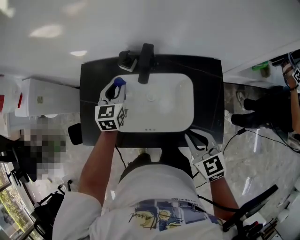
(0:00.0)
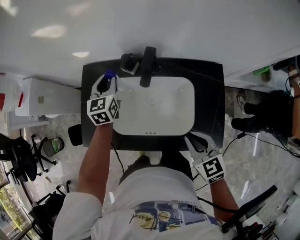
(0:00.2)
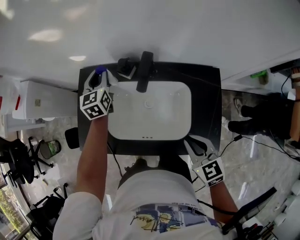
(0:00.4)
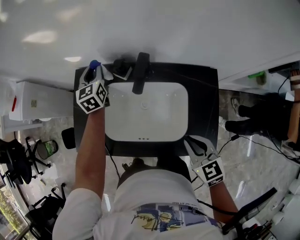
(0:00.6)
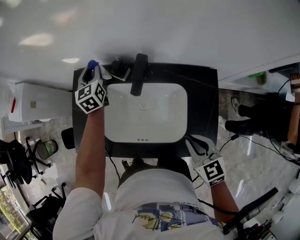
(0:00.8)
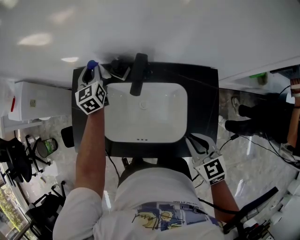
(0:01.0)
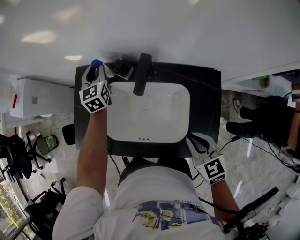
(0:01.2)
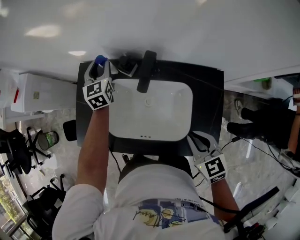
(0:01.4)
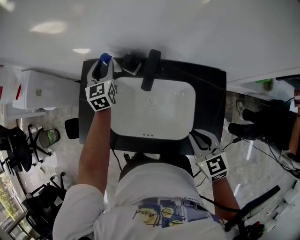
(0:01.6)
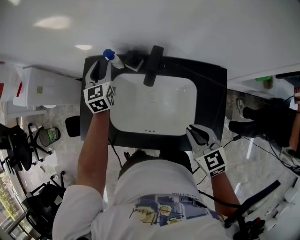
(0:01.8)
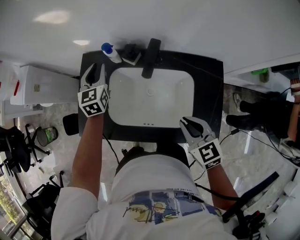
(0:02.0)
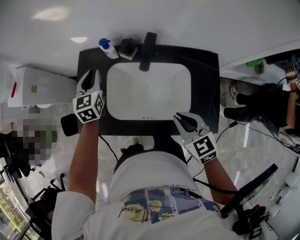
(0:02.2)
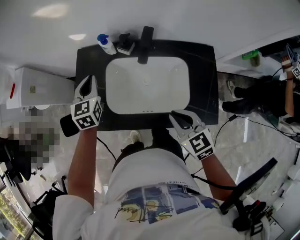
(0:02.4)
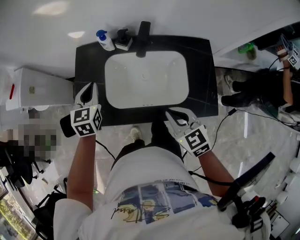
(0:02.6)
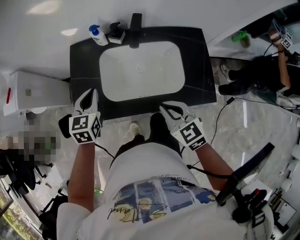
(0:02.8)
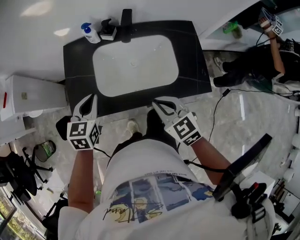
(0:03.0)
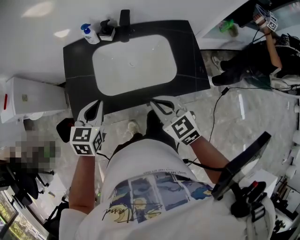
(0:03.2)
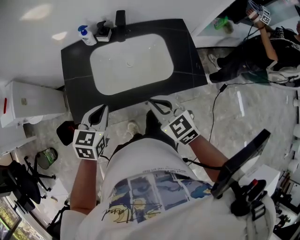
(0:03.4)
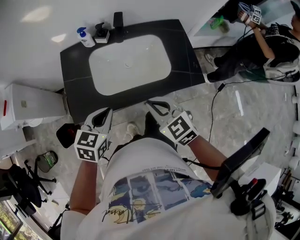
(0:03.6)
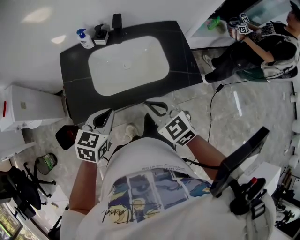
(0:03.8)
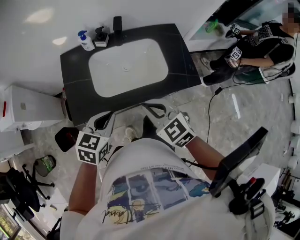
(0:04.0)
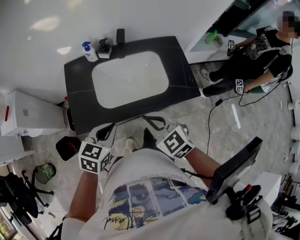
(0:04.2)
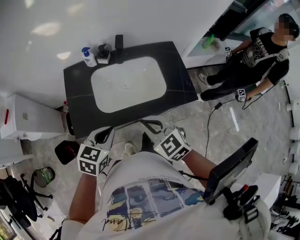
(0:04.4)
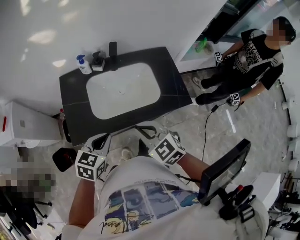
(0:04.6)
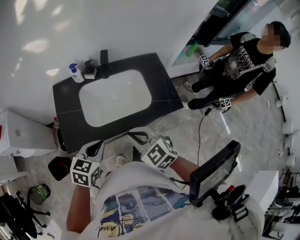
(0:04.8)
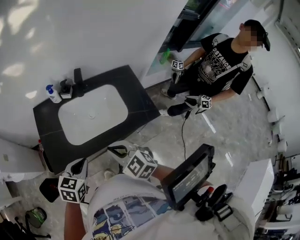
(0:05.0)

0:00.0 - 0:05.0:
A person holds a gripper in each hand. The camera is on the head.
0:00.0 - 0:01.6: The left gripper heads forward, covering roughly 10 cm.
0:01.6 - 0:03.4: The left gripper shifts by some 40 cm, turns by approximately 40 degrees, and closes its fingers. The right gripper moves approximately 20 cm.
0:03.4 - 0:05.0: The right gripper ends up roughly 5 cm from where it was; the left gripper is displaced backward by some 5 cm.

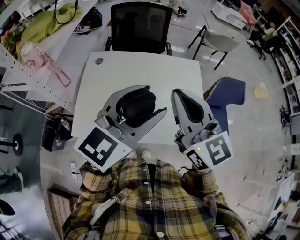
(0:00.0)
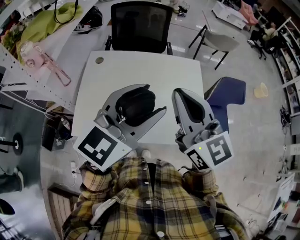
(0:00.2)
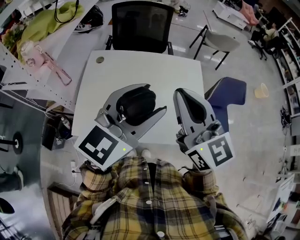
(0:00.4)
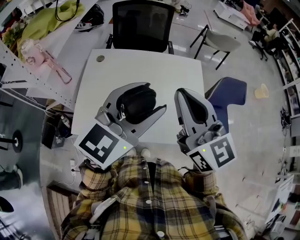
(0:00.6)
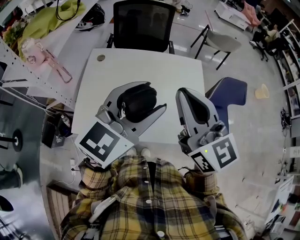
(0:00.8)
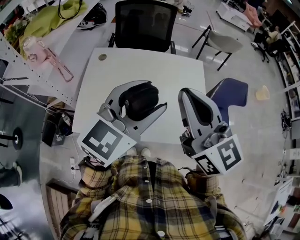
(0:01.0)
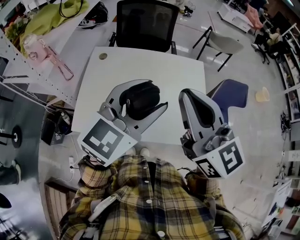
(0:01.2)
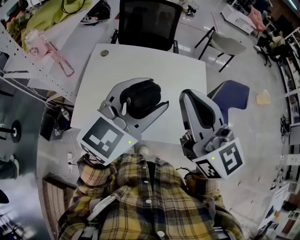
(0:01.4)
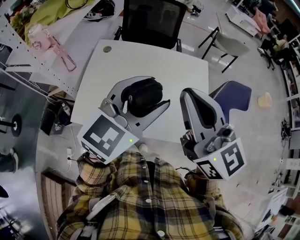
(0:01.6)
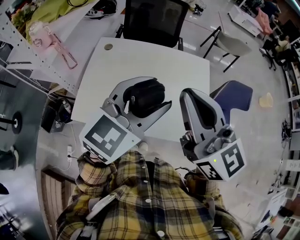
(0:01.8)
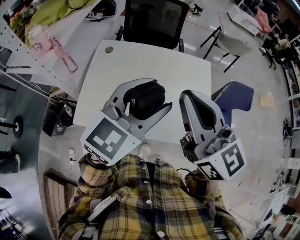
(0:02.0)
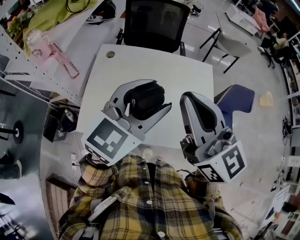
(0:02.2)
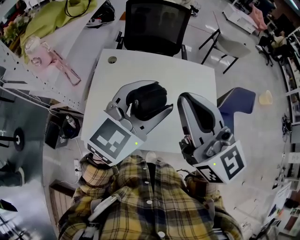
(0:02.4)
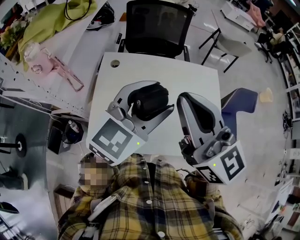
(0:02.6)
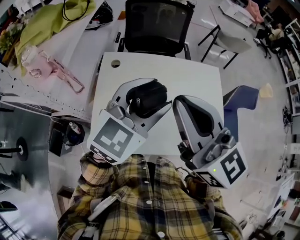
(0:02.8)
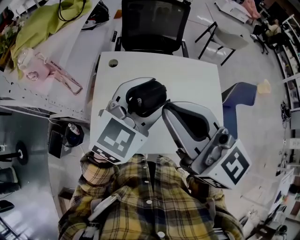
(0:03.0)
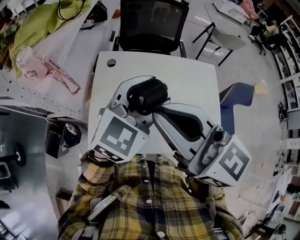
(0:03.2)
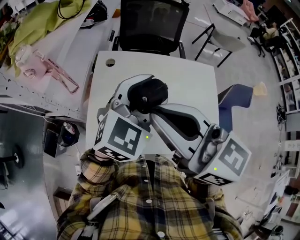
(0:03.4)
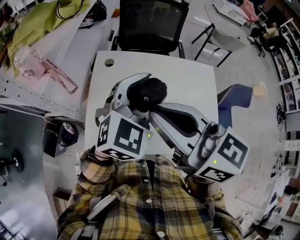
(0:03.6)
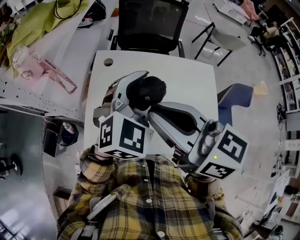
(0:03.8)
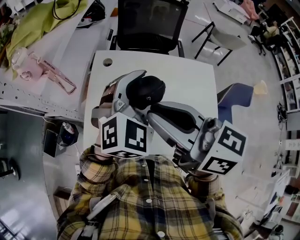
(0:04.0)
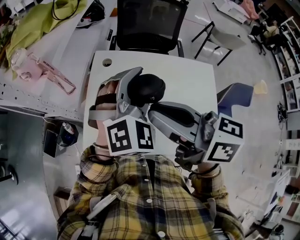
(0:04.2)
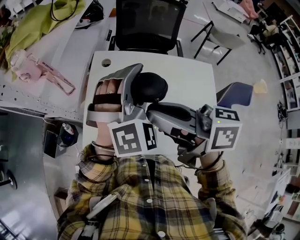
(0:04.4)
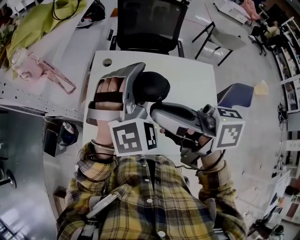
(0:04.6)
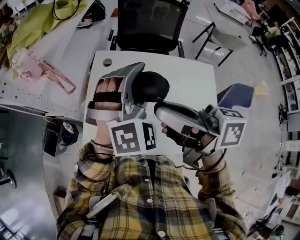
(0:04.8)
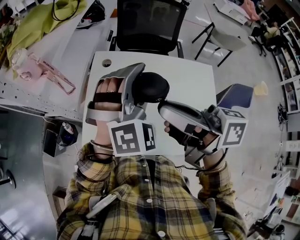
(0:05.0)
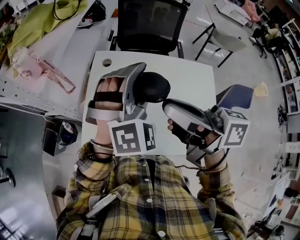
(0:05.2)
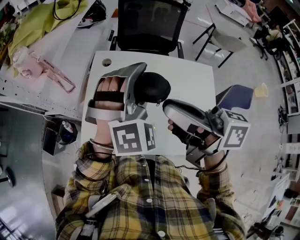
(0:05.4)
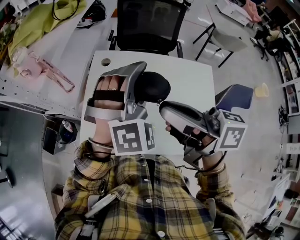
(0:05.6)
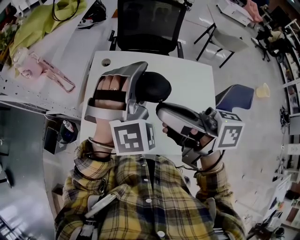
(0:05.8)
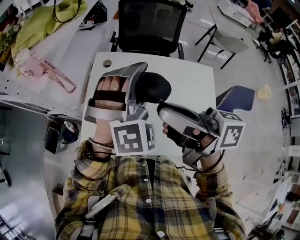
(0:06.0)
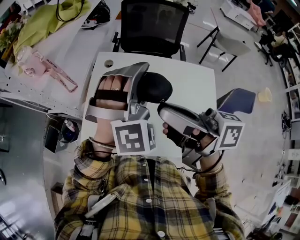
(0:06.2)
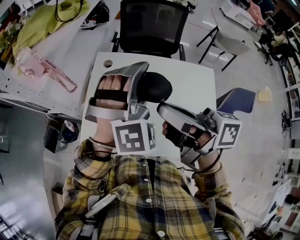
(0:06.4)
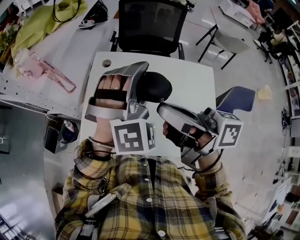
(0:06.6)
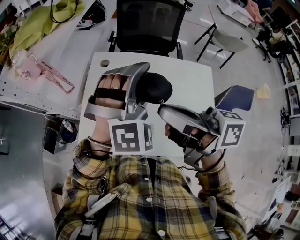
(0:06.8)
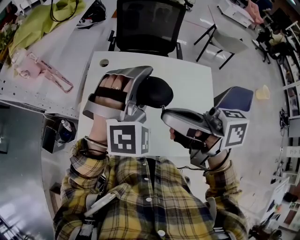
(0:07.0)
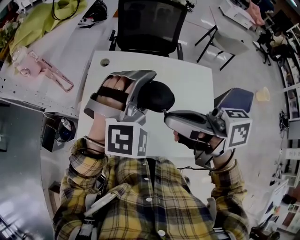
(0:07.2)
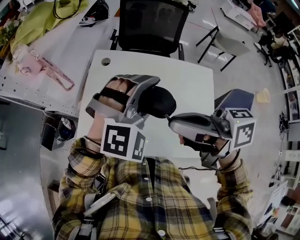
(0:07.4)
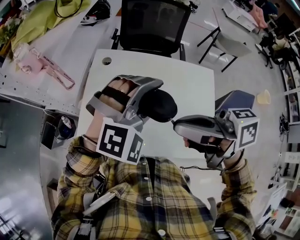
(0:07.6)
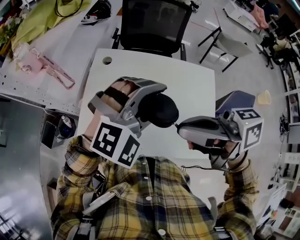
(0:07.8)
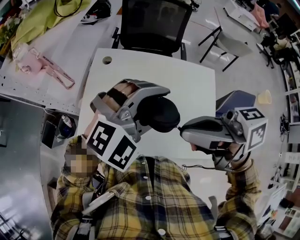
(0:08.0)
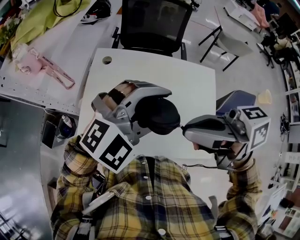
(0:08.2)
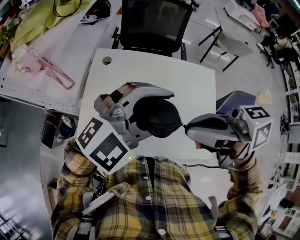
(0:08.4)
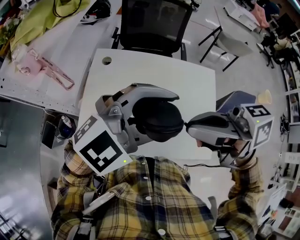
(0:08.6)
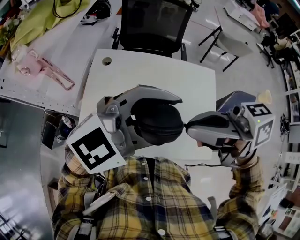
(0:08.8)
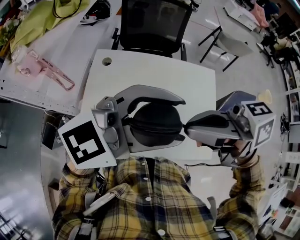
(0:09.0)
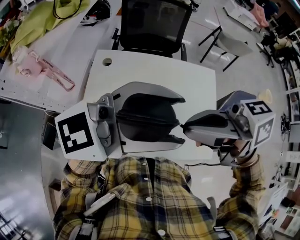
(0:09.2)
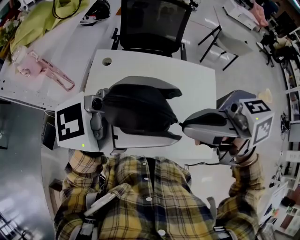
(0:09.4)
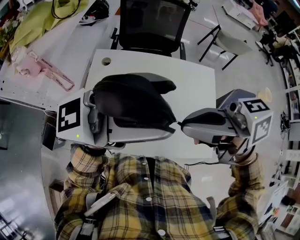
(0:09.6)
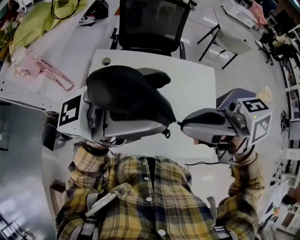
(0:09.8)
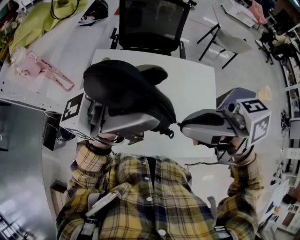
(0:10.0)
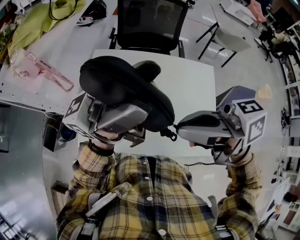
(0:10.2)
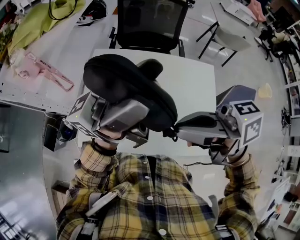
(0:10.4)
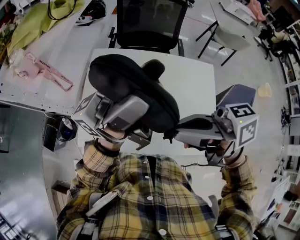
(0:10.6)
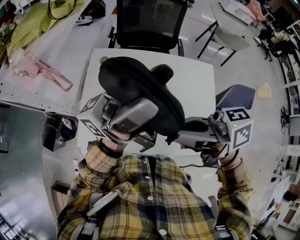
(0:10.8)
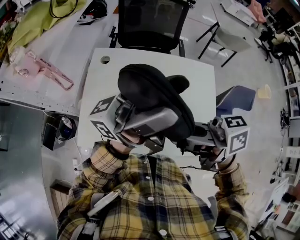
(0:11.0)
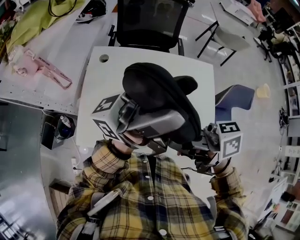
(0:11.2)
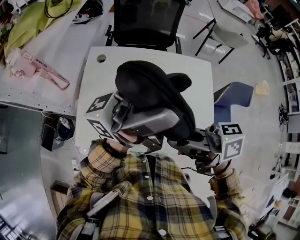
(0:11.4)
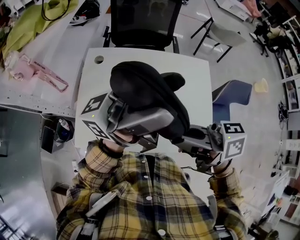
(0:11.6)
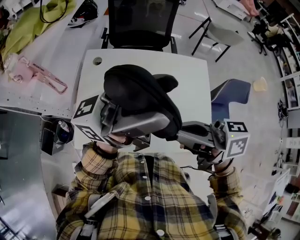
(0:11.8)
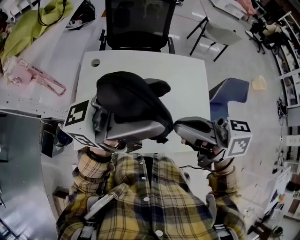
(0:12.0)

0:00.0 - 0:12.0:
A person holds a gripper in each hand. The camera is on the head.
0:00.0 - 0:01.6: The grippers stay close to where they were, moving slightly.
0:01.6 - 0:03.0: The left gripper shifts approximately 15 cm to the left and forward; the right gripper is displaced to the left by some 20 cm.
0:03.0 - 0:04.4: The left gripper ends up about 5 cm from where it was, and rotates approximately 50 degrees, while the right gripper heads downward, covering roughly 5 cm, and twists some 40 degrees clockwise, seen from behind.
0:04.4 - 0:06.0: The right gripper moves roughly 5 cm.
0:06.0 - 0:07.6: The left gripper moves backward, approximately 5 cm, and changes its angle by about 20 degrees.
0:07.6 - 0:09.0: The left gripper travels upward by some 10 cm, and changes its angle by about 60 degrees.
0:09.0 - 0:10.4: The left gripper shifts by roughly 10 cm, and points its fingers about 60 degrees further upward.
0:10.4 - 0:12.0: The left gripper moves approximately 5 cm; the right gripper shifts by about 5 cm, and swivels approximately 20 degrees.

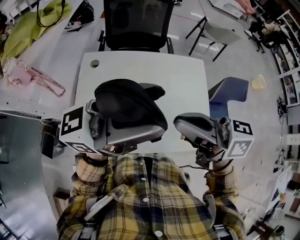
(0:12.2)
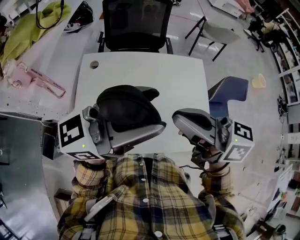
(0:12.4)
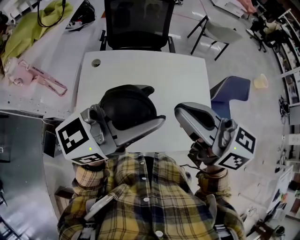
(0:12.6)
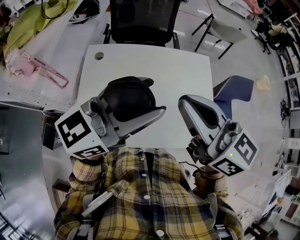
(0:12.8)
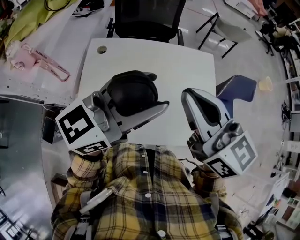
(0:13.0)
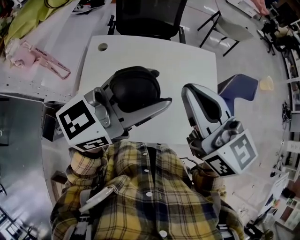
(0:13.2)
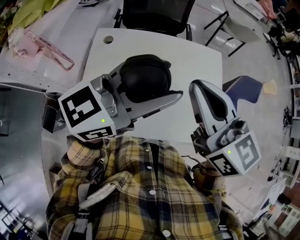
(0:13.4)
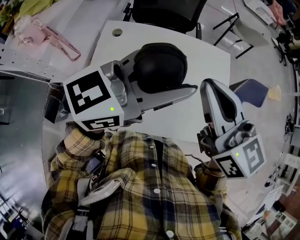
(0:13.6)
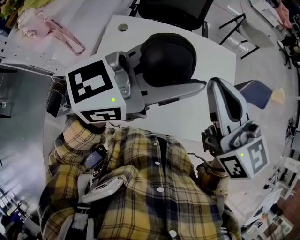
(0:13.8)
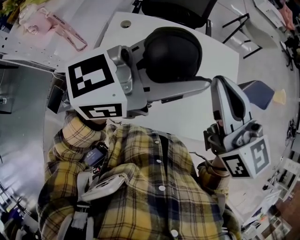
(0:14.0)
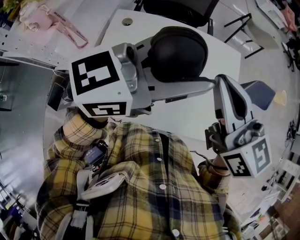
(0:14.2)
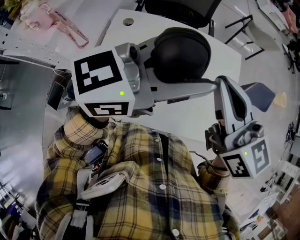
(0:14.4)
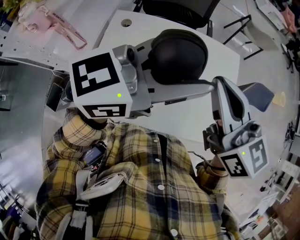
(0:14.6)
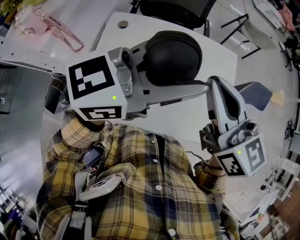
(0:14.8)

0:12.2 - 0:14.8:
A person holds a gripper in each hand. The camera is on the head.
0:12.2 - 0:13.4: The right gripper changes place by about 5 cm, and changes its angle by approximately 40 degrees. The left gripper travels downward by approximately 5 cm, and rotates some 30 degrees.
0:13.4 - 0:14.8: The grippers move only a little.

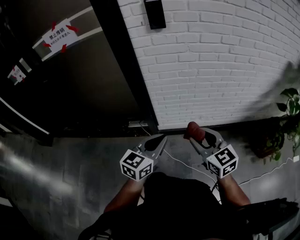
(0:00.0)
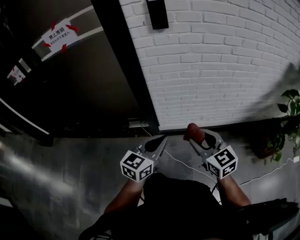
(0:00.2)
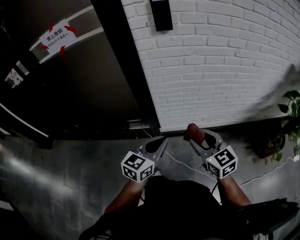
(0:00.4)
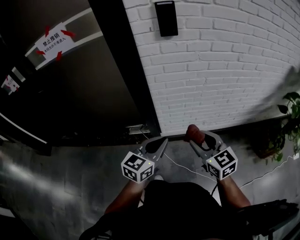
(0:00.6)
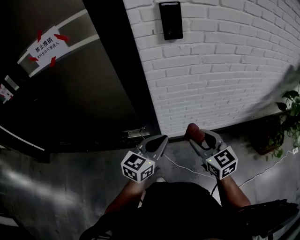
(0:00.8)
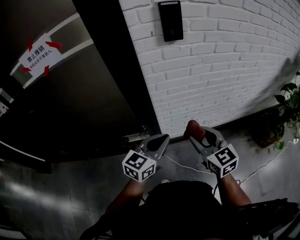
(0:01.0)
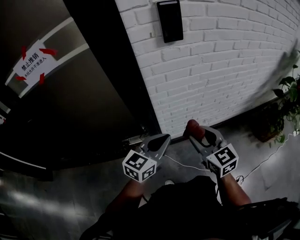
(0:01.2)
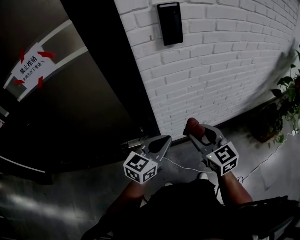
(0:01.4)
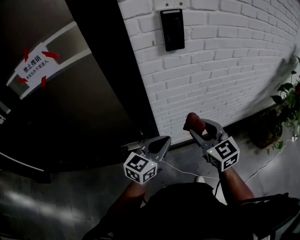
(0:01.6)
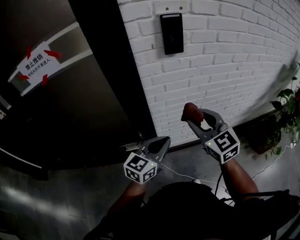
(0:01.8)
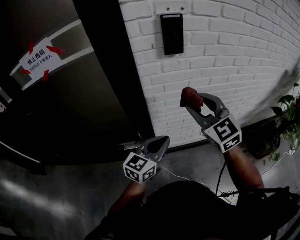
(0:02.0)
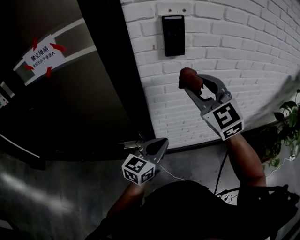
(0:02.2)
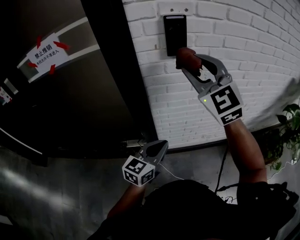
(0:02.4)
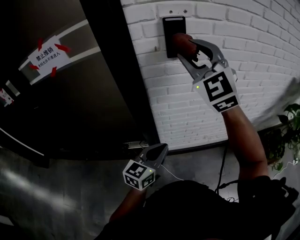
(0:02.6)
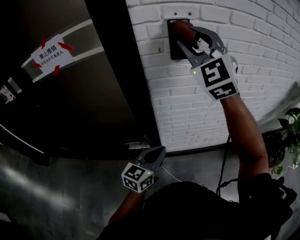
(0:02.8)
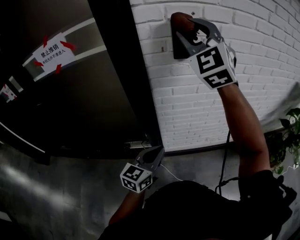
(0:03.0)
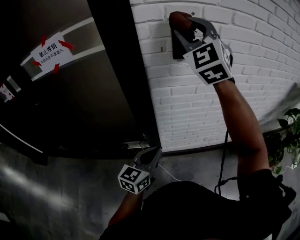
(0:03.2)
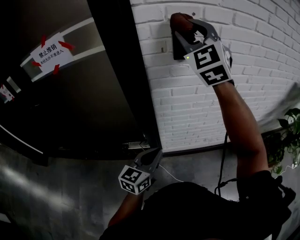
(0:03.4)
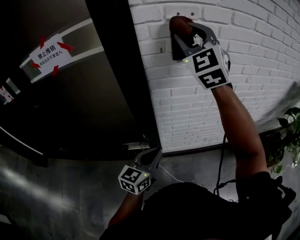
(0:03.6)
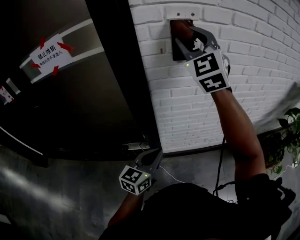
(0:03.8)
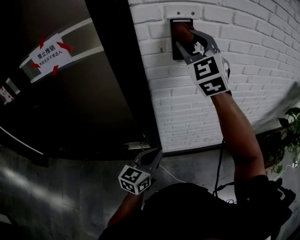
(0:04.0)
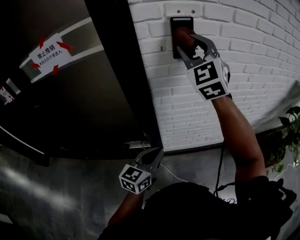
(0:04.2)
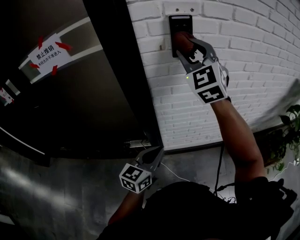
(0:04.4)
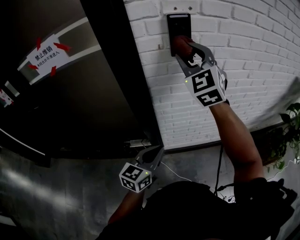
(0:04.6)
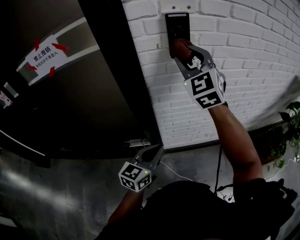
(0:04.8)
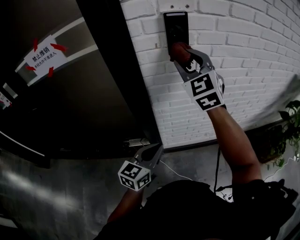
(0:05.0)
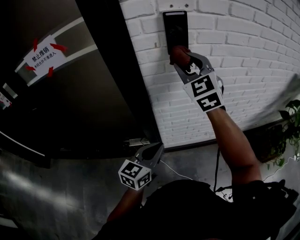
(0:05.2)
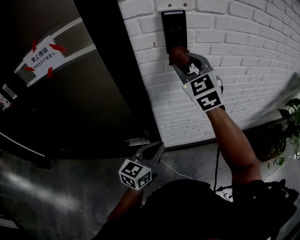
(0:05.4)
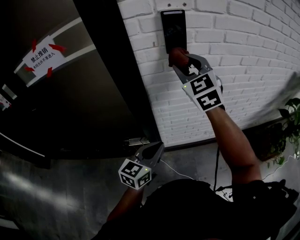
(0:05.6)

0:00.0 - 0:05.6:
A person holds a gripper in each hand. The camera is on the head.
0:00.0 - 0:01.4: Both grippers travel together forward and to the left, some 20 cm.
0:01.4 - 0:02.8: The right gripper moves upward and forward, some 35 cm, and twists some 50 degrees counterclockwise, seen from behind.
0:02.8 - 0:04.2: The right gripper ends up some 5 cm from where it was.
0:04.2 - 0:05.6: The right gripper heads downward, covering approximately 10 cm.
